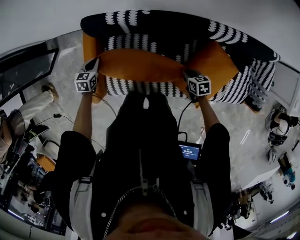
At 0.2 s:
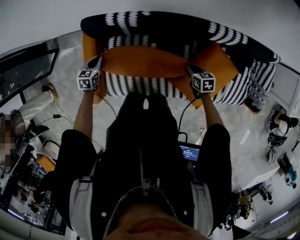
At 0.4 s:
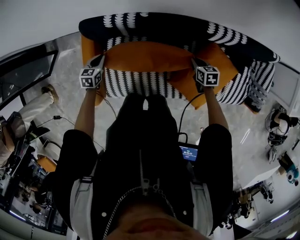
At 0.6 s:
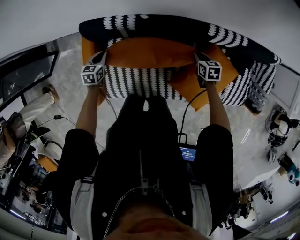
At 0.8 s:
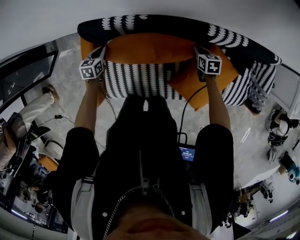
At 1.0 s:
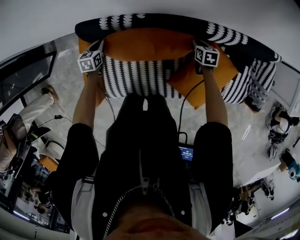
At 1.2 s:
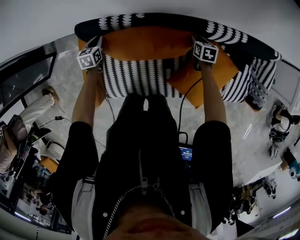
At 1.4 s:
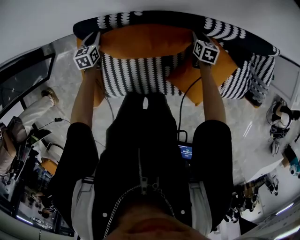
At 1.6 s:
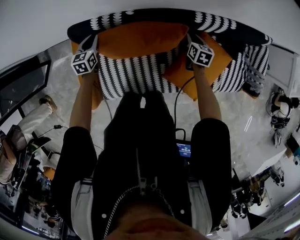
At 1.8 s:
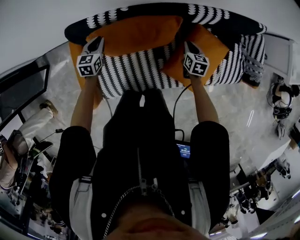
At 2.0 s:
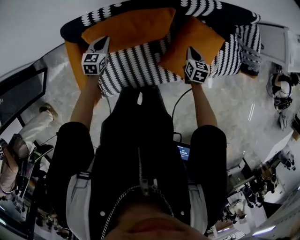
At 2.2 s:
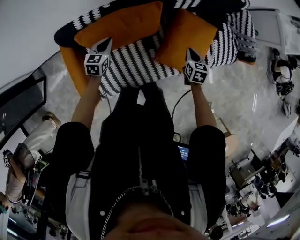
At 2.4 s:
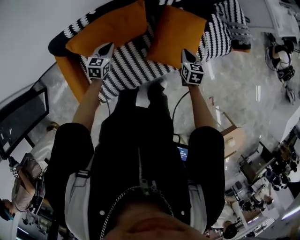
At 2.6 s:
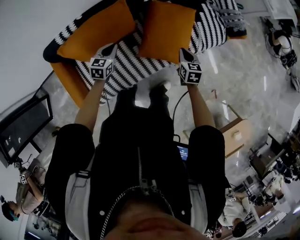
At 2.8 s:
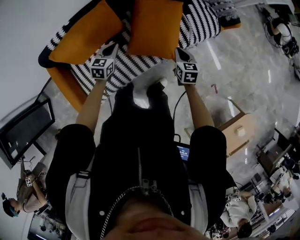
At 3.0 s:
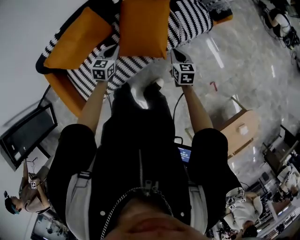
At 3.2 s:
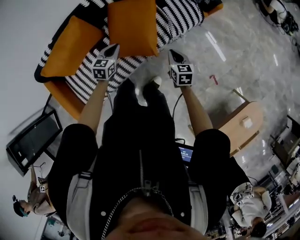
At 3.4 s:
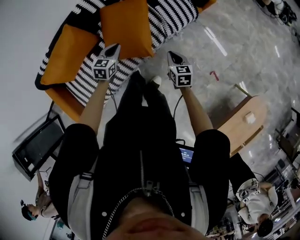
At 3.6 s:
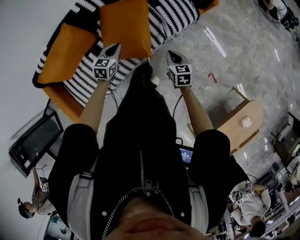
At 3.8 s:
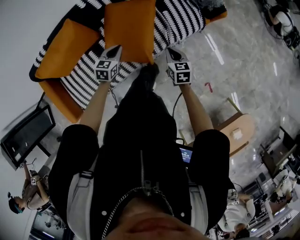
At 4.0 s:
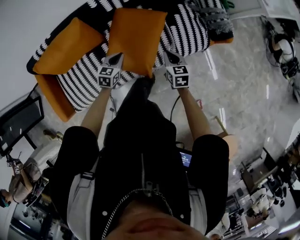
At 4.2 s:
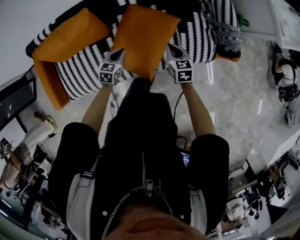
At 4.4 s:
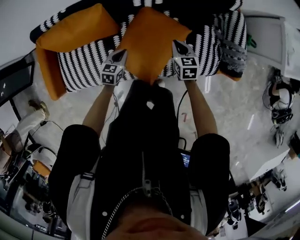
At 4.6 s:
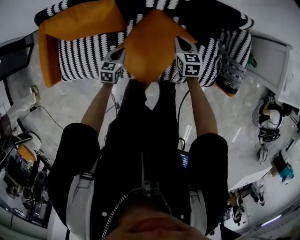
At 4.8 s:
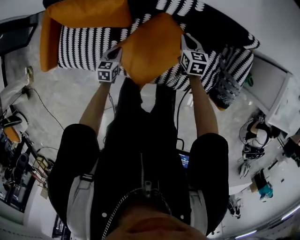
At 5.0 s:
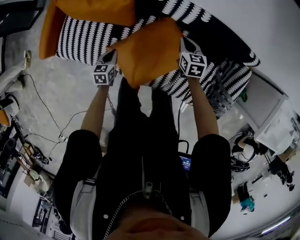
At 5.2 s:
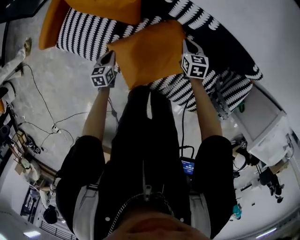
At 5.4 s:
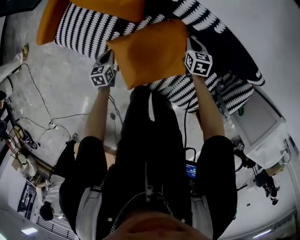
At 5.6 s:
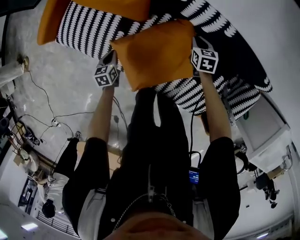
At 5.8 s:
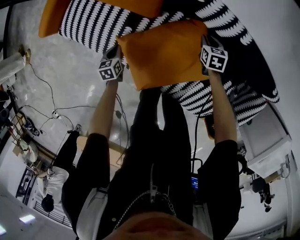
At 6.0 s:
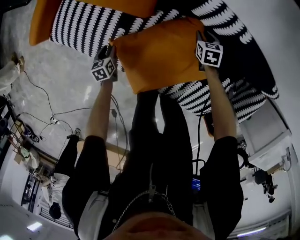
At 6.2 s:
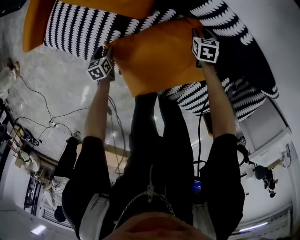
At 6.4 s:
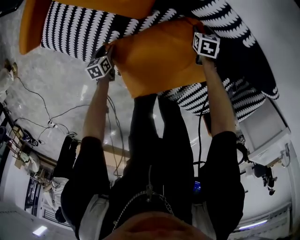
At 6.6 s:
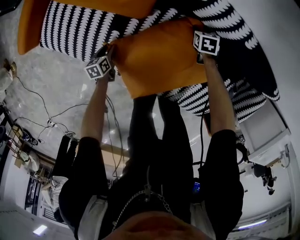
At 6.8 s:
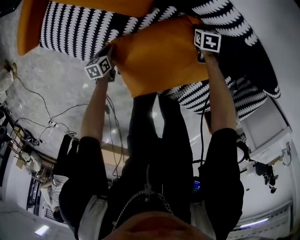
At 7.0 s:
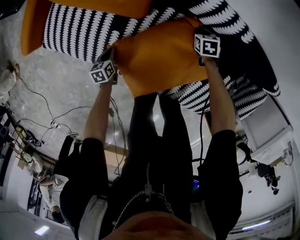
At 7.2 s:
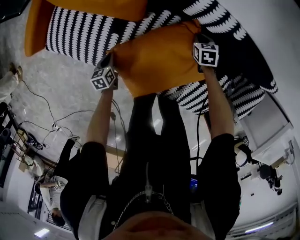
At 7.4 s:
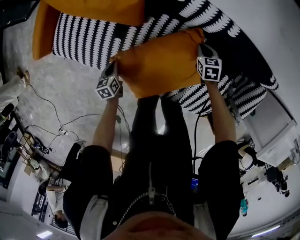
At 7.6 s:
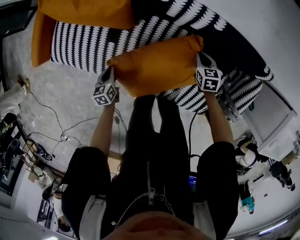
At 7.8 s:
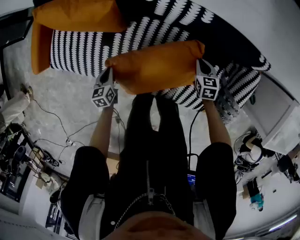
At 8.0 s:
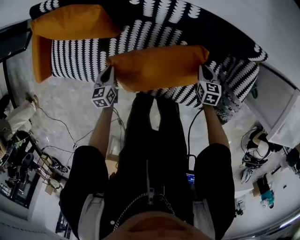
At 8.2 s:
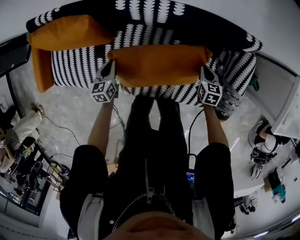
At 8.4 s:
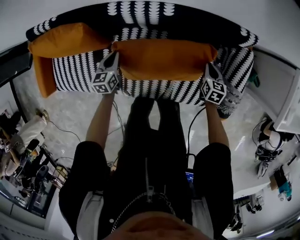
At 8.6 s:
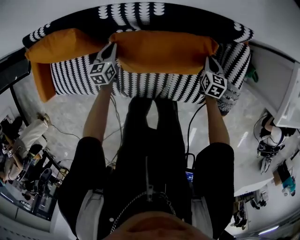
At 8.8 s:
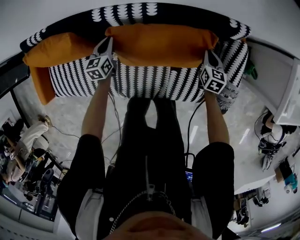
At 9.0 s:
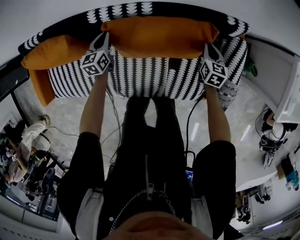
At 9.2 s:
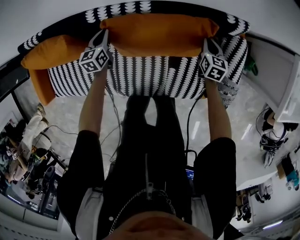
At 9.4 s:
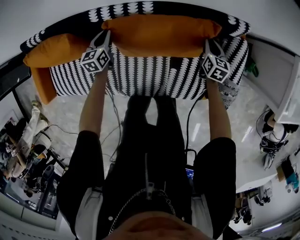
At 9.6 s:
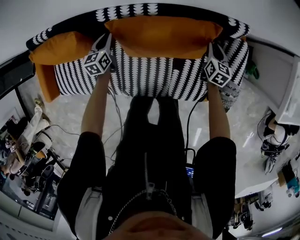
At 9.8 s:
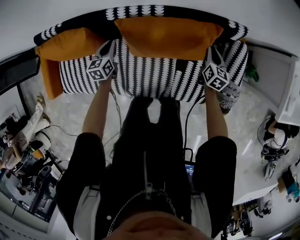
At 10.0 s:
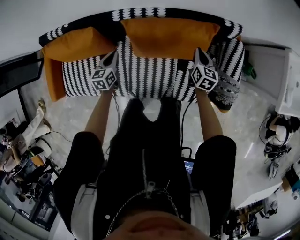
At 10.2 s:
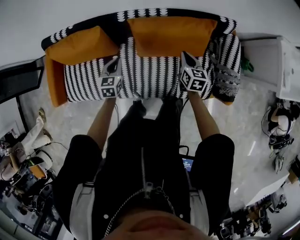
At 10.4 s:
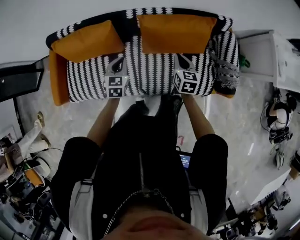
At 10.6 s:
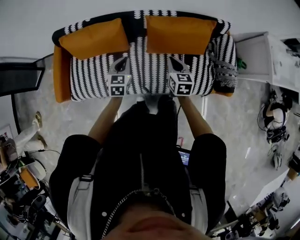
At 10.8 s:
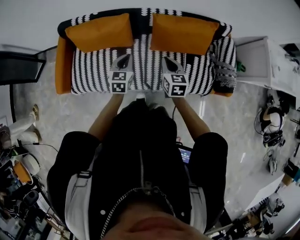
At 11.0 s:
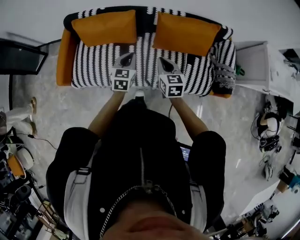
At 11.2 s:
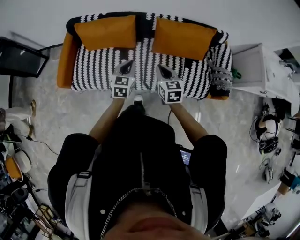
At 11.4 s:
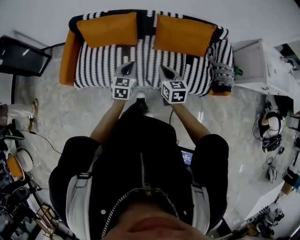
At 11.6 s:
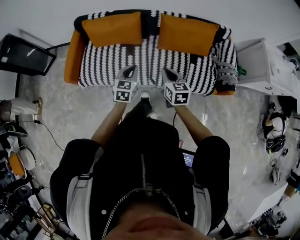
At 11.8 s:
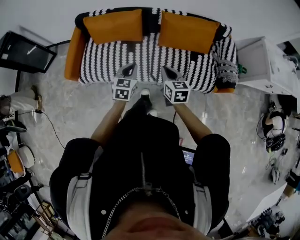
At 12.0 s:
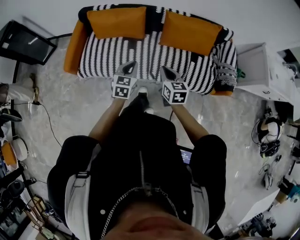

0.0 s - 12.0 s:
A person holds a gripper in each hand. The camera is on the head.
0.0 s - 1.6 s: The right gripper ends up some 20 cm from where it was, and turns by roughly 30 degrees; the left gripper shifts by some 15 cm.
1.6 s - 3.0 s: Both grippers are carried roughly 50 cm. The left gripper changes its angle by about 40 degrees. Meanwhile the right gripper closes.
3.0 s - 4.4 s: The left gripper moves approximately 15 cm, and changes its angle by roughly 30 degrees. The right gripper ends up some 30 cm from where it was, and turns by roughly 30 degrees.
4.4 s - 6.0 s: The right gripper moves roughly 35 cm, turns by approximately 40 degrees, and opens up, while the left gripper heads downward, covering roughly 20 cm, turns by roughly 70 degrees, and opens up.
6.0 s - 7.6 s: The right gripper heads to the right, backward and upward, covering about 15 cm, and opens and closes again. Meanwhile the left gripper travels to the right and upward by about 15 cm, and closes its fingers.
7.6 s - 9.0 s: The left gripper ends up roughly 40 cm from where it was, and rotates roughly 30 degrees. Meanwhile the right gripper shifts by some 30 cm, and rotates roughly 40 degrees.
9.0 s - 10.4 s: The right gripper goes some 40 cm to the left, backward and upward; the left gripper heads backward and upward, covering about 35 cm, and swivels approximately 20 degrees.
10.4 s - 12.0 s: The left gripper travels backward by about 30 cm. The right gripper travels backward and to the left by about 35 cm.

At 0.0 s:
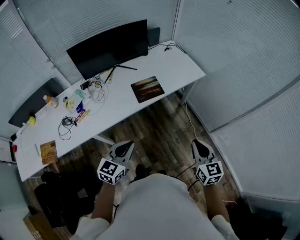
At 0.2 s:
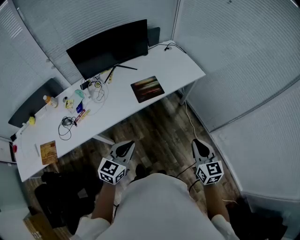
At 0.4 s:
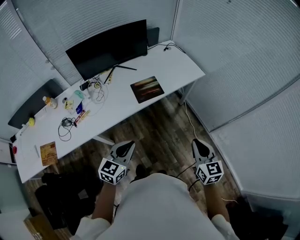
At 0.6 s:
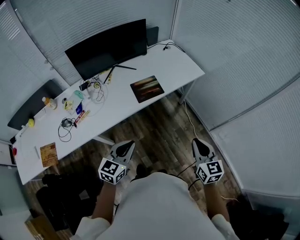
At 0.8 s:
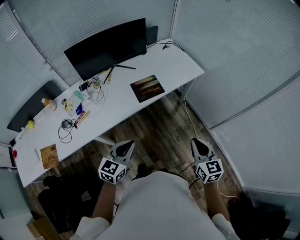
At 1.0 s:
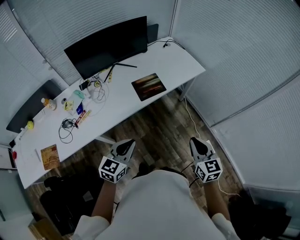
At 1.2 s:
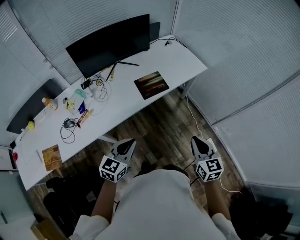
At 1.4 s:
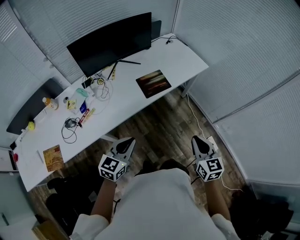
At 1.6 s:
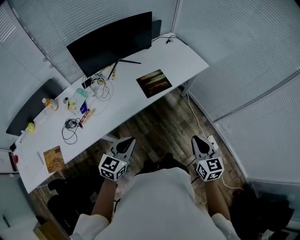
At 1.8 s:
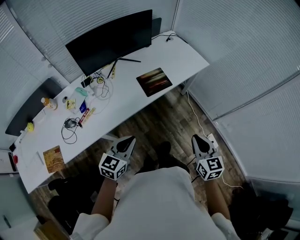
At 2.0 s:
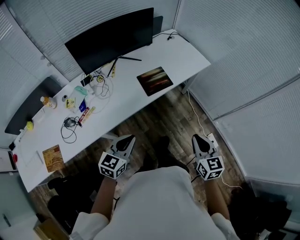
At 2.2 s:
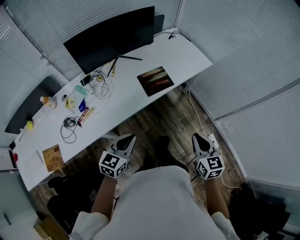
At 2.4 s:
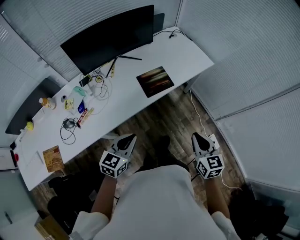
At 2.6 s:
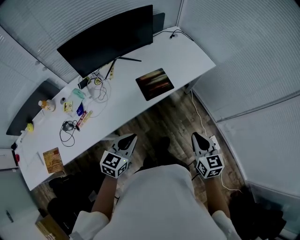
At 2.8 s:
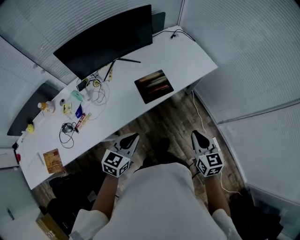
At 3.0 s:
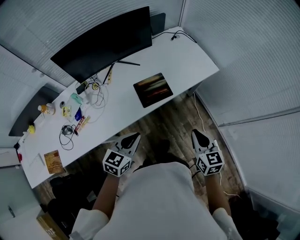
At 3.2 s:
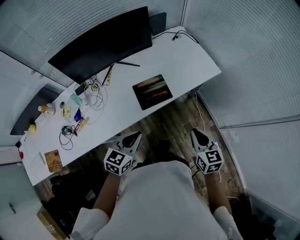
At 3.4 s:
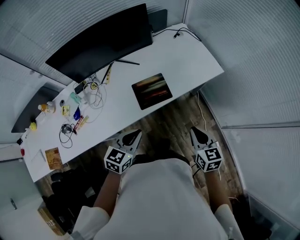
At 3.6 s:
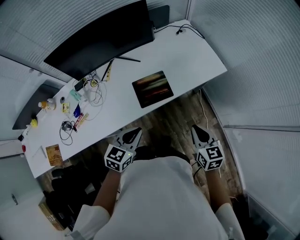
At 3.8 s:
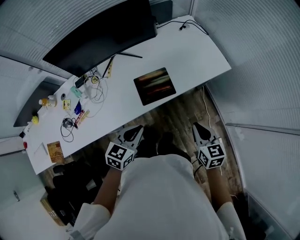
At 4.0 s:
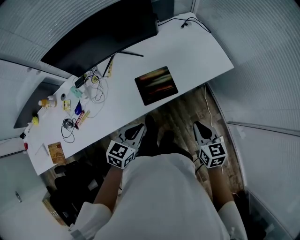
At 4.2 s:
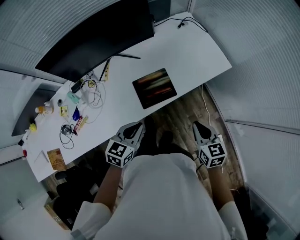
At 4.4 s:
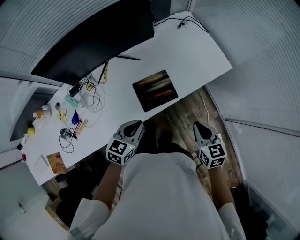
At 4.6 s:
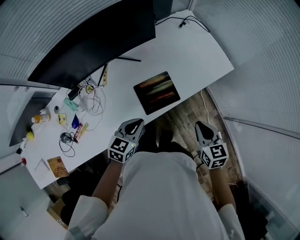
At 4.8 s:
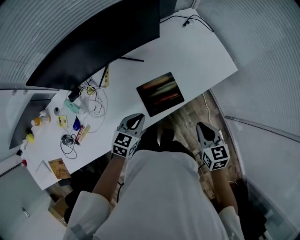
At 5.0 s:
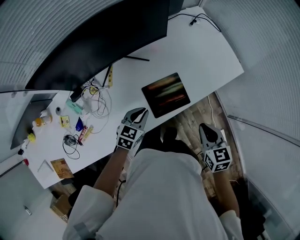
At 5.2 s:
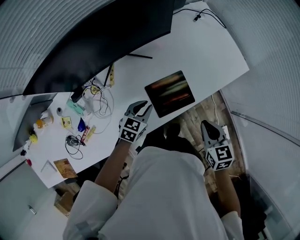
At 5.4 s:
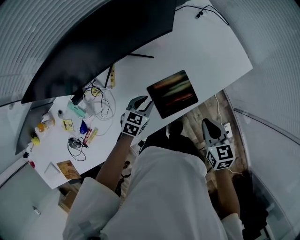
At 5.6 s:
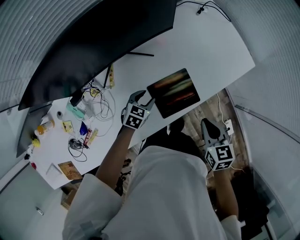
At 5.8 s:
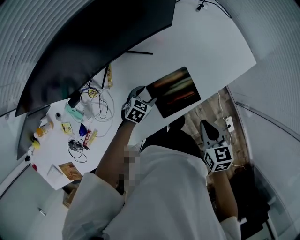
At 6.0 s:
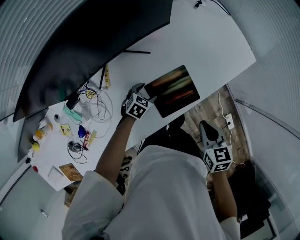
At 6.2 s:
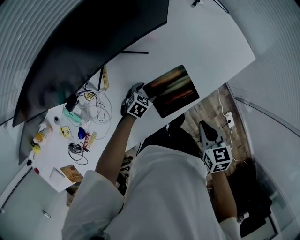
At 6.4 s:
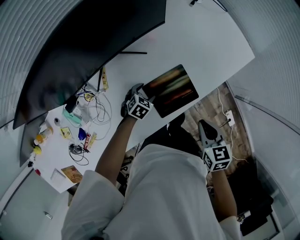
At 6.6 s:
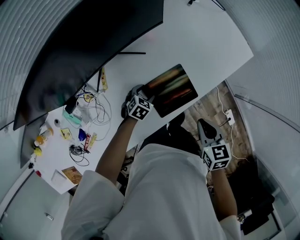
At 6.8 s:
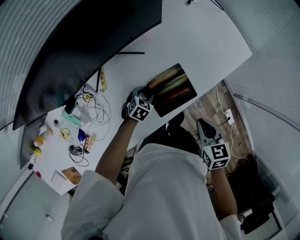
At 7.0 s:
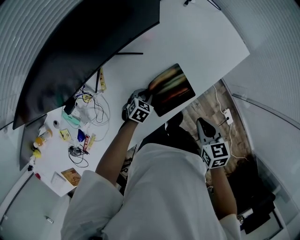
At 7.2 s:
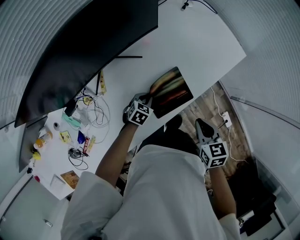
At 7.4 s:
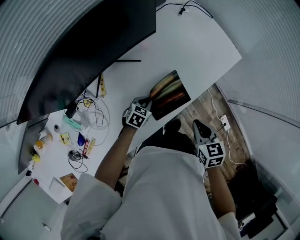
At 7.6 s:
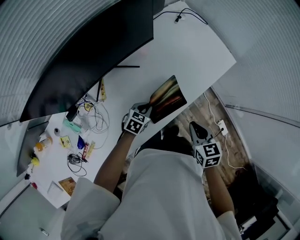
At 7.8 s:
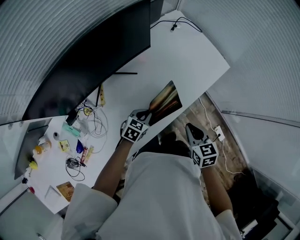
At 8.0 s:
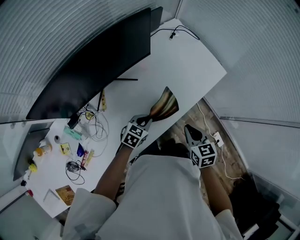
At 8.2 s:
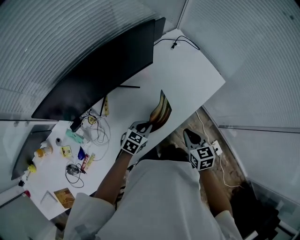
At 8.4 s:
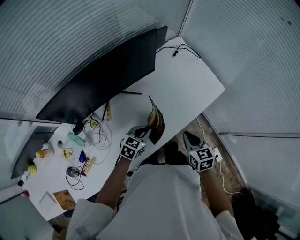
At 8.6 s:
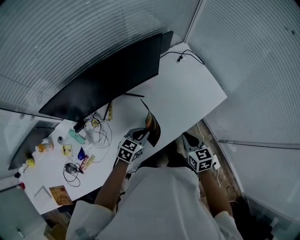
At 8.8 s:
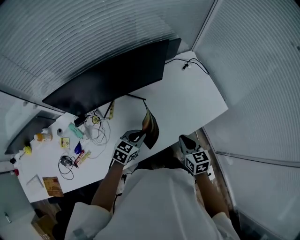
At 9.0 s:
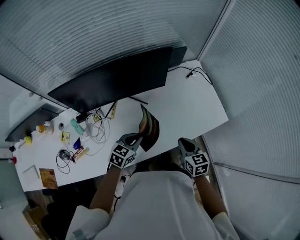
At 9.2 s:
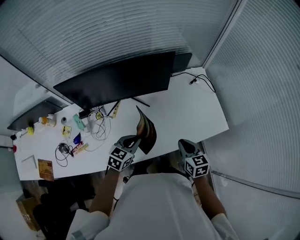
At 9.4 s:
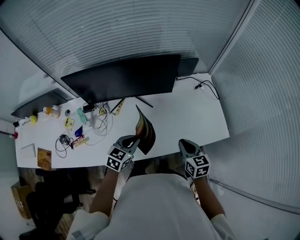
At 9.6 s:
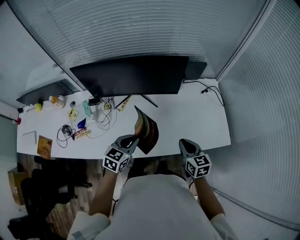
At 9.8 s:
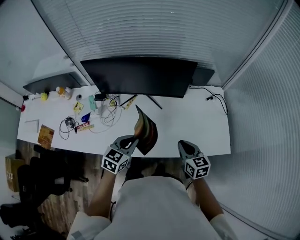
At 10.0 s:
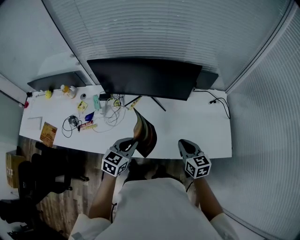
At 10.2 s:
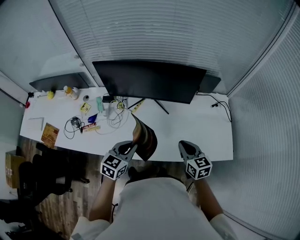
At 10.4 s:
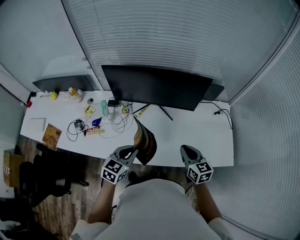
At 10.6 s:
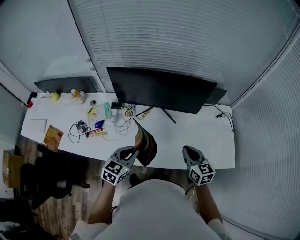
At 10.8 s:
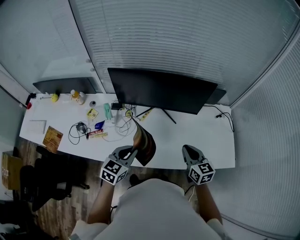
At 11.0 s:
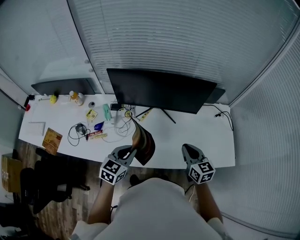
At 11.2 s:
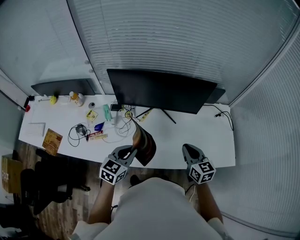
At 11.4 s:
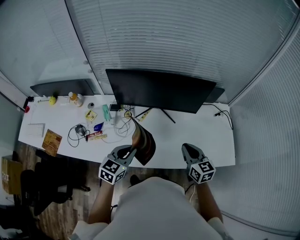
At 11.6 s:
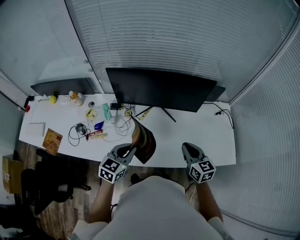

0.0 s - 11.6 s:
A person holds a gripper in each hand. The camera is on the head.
0.0 s - 1.4 s: The grippers both shift to the left by roughly 10 cm.
1.4 s - 2.8 s: The grippers both shift forward by about 15 cm.
2.8 s - 4.4 s: The two grippers go some 15 cm forward.
4.4 s - 5.8 s: The right gripper moves to the left, downward and forward, approximately 15 cm, while the left gripper travels downward and forward by approximately 30 cm, rotates about 30 degrees, and opens.
5.8 s - 7.2 s: The left gripper closes.
7.2 s - 8.8 s: The right gripper goes some 10 cm forward and upward; the left gripper goes roughly 20 cm upward, and swivels roughly 30 degrees.
8.8 s - 10.2 s: The right gripper goes about 5 cm upward, and changes its angle by roughly 30 degrees; the left gripper moves upward, roughly 10 cm, and changes its angle by some 40 degrees.
10.2 s - 11.6 s: Both grippers move to the left, approximately 5 cm.
